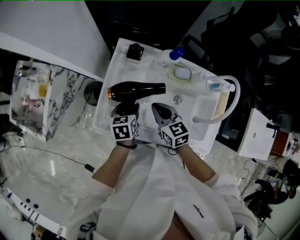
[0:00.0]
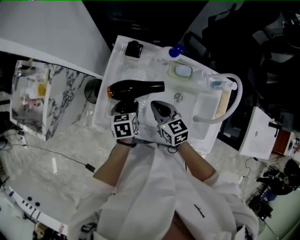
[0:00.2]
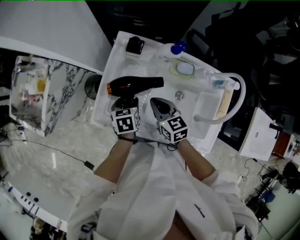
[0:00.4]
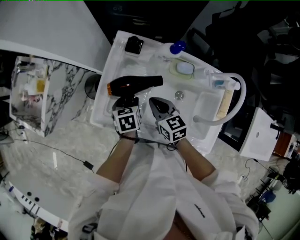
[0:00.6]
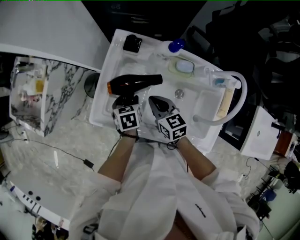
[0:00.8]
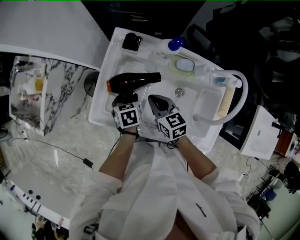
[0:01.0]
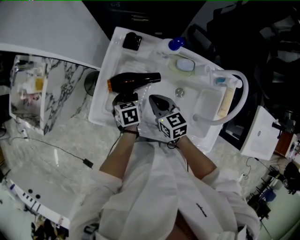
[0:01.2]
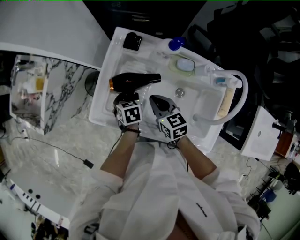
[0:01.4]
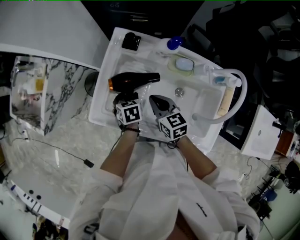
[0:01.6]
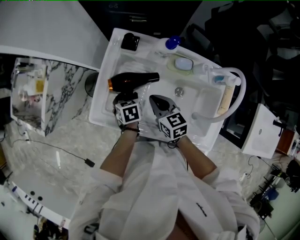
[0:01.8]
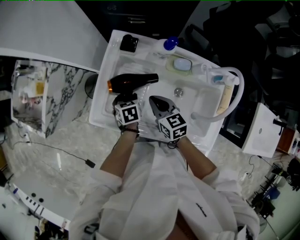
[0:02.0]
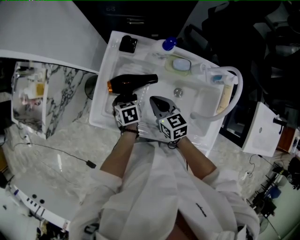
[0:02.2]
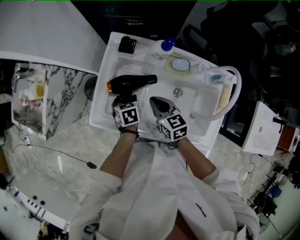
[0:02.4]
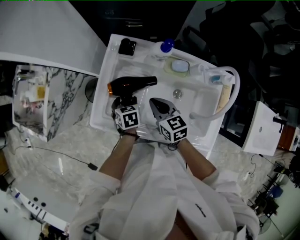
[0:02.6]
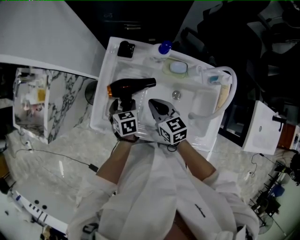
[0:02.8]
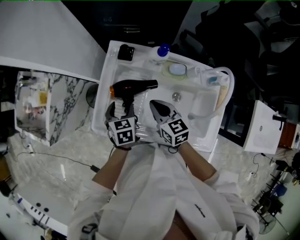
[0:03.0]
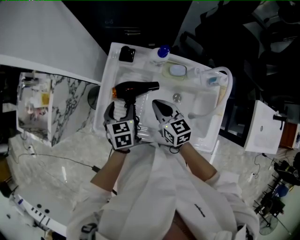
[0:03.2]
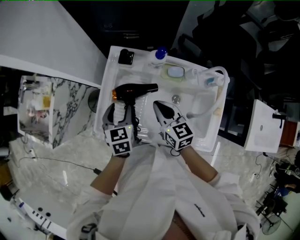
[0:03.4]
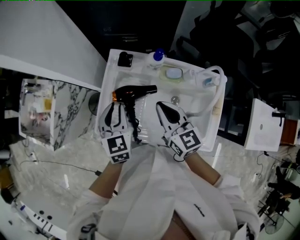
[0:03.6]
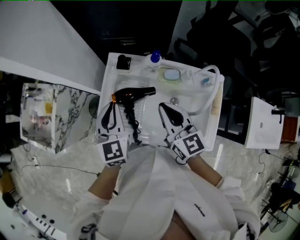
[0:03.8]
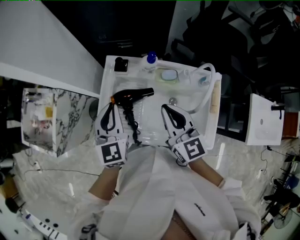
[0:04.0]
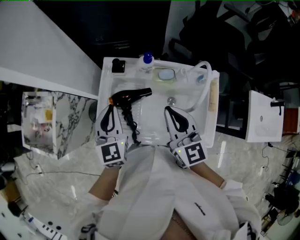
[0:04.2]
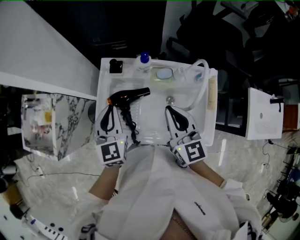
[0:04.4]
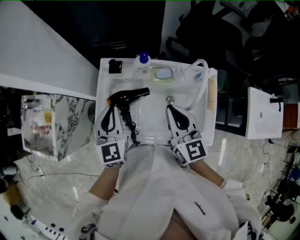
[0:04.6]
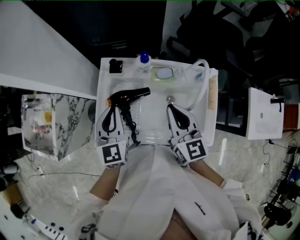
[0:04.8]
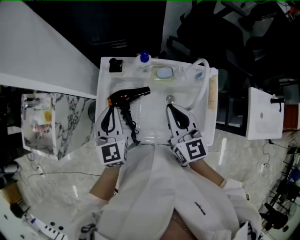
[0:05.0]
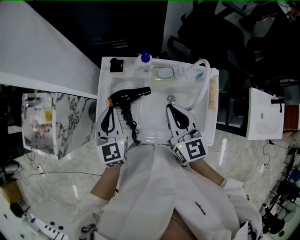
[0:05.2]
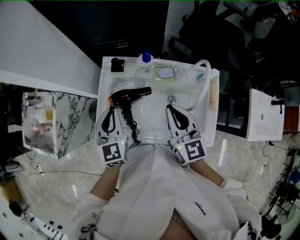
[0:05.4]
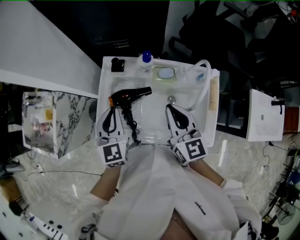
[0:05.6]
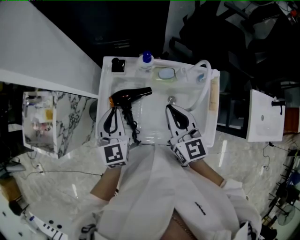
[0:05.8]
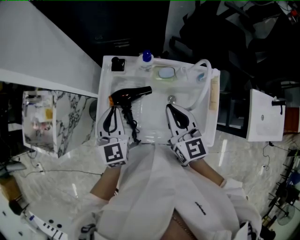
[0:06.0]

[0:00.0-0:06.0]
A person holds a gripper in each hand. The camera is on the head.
0:00.0 to 0:01.6: The left gripper shifts roughly 5 cm downward.
0:01.6 to 0:03.0: The right gripper ends up roughly 5 cm from where it was. The left gripper is displaced upward by roughly 10 cm.
0:03.0 to 0:04.4: Both grippers move upward, about 20 cm. The left gripper points its fingers approximately 30 degrees further upward, and closes up; the right gripper turns by roughly 30 degrees.
0:04.4 to 0:06.0: The grippers move only a little.

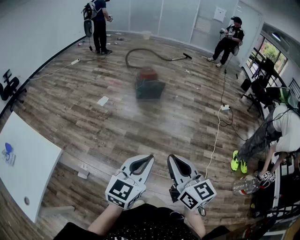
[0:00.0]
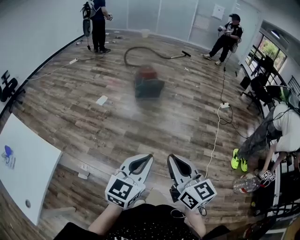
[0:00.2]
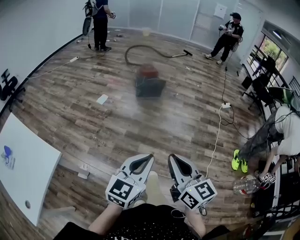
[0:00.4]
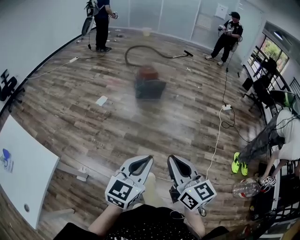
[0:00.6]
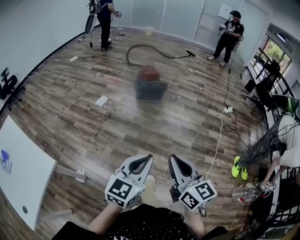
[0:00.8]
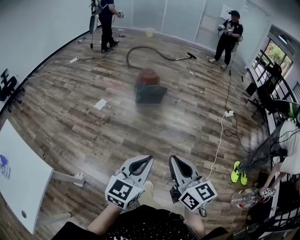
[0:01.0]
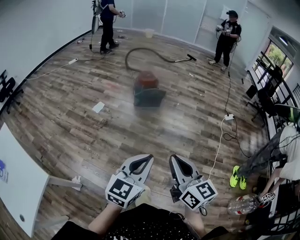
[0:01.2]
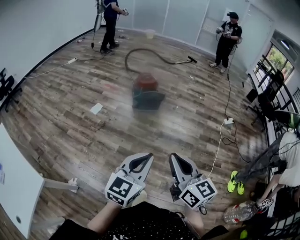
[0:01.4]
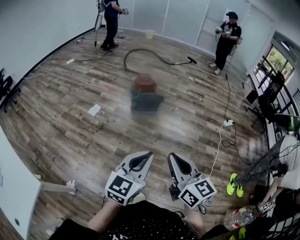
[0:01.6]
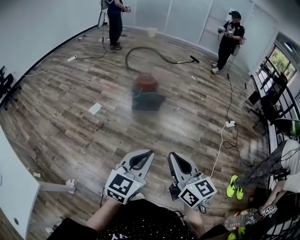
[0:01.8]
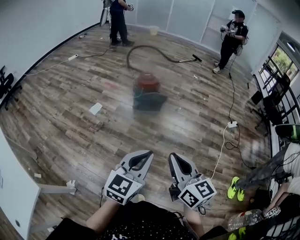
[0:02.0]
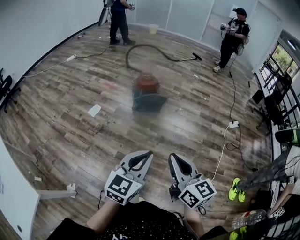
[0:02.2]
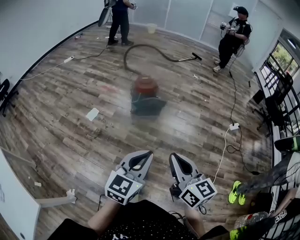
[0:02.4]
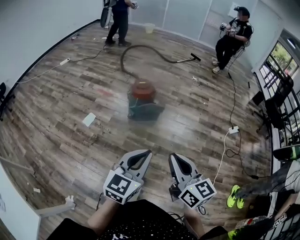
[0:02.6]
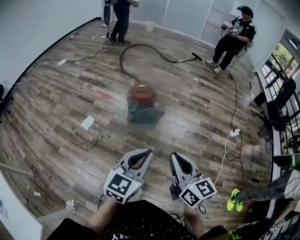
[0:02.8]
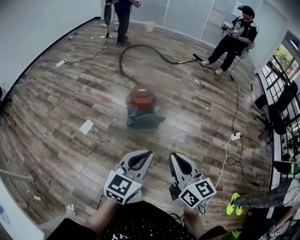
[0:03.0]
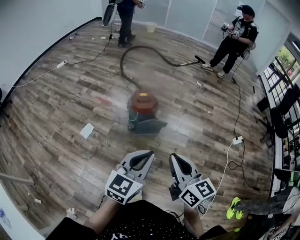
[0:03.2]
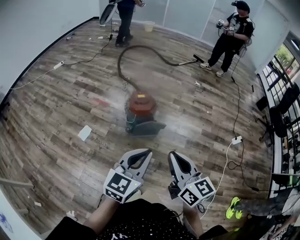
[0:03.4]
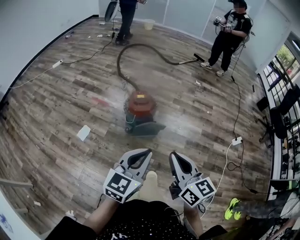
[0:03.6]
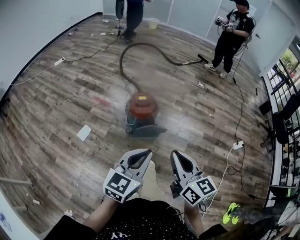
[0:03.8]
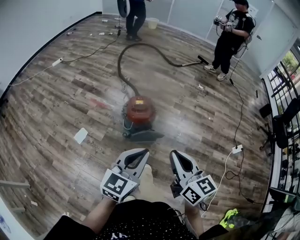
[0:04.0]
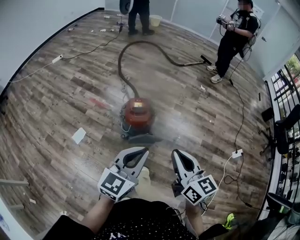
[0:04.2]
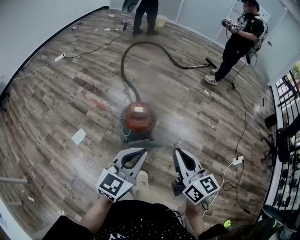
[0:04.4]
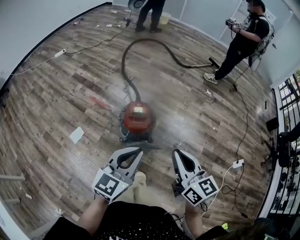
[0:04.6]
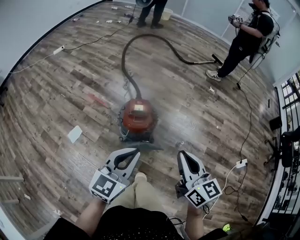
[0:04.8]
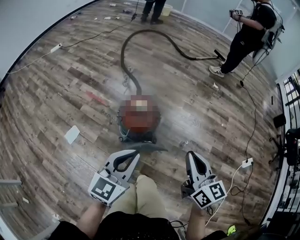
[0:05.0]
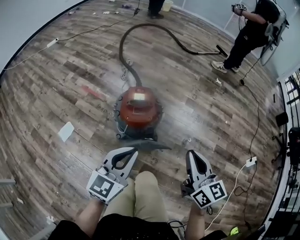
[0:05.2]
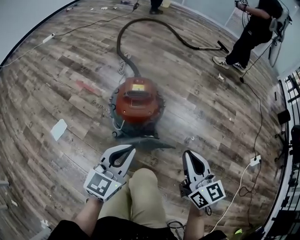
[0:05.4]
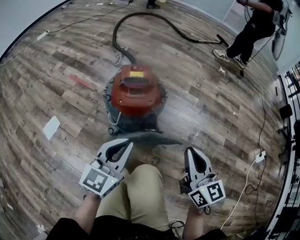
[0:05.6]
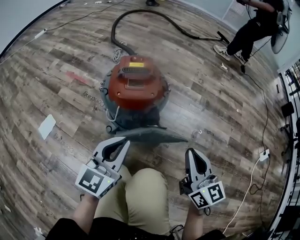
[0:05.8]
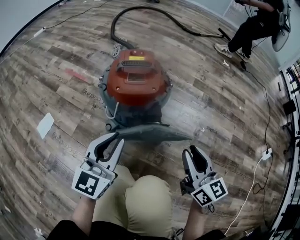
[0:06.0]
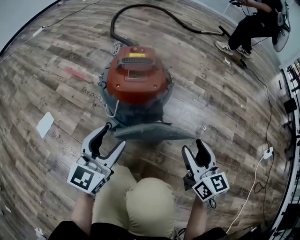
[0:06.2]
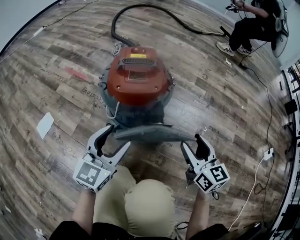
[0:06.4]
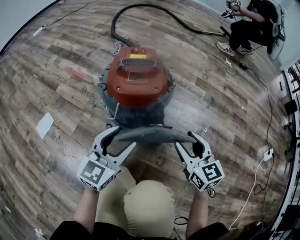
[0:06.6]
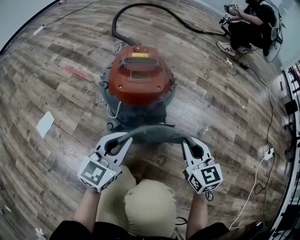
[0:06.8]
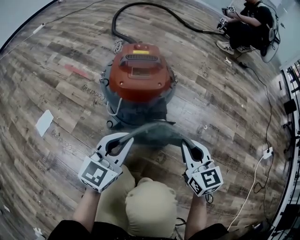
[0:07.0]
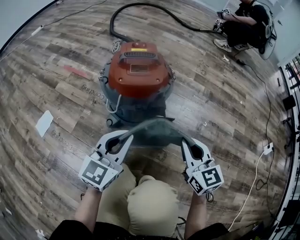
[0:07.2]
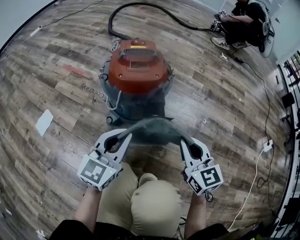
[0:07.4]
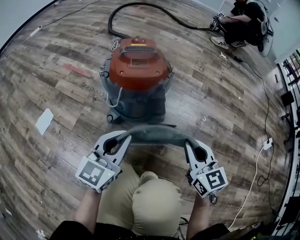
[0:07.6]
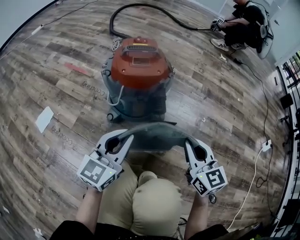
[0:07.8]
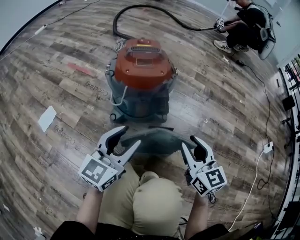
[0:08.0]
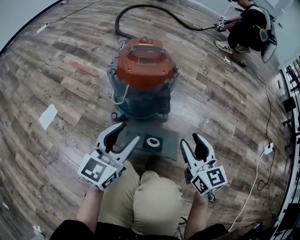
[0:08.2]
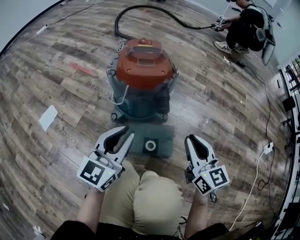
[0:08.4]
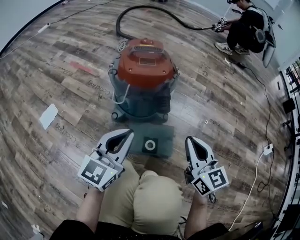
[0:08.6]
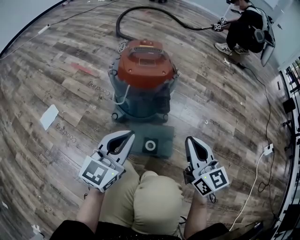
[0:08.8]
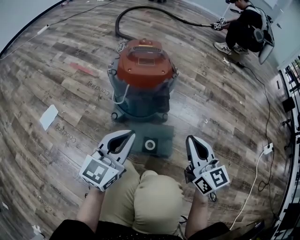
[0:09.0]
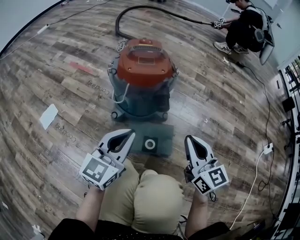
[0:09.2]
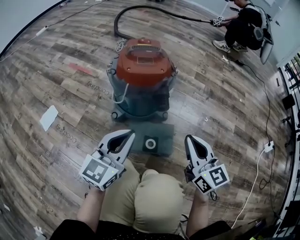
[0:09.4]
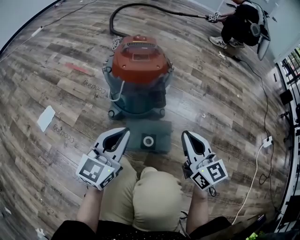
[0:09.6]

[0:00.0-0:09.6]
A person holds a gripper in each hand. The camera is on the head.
0:00.0 to 0:01.6: Both grippers move forward, about 30 cm.
0:01.6 to 0:03.2: The two grippers travel together, forward, about 50 cm.
0:03.2 to 0:04.8: The two grippers go roughly 35 cm forward.
0:04.8 to 0:06.4: Both grippers move downward, approximately 50 cm. The left gripper opens. The right gripper opens its fingers.
0:06.4 to 0:08.0: The grippers both shift backward by about 5 cm. The left gripper closes, then opens again, while the right gripper closes.
0:08.0 to 0:09.6: The left gripper closes up. Meanwhile the right gripper closes its fingers.

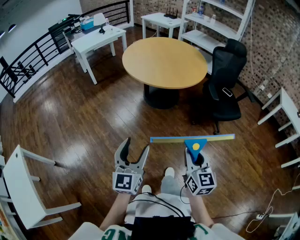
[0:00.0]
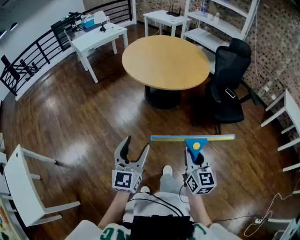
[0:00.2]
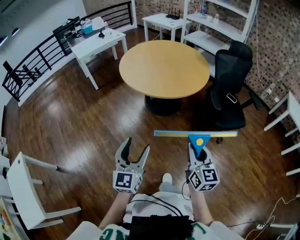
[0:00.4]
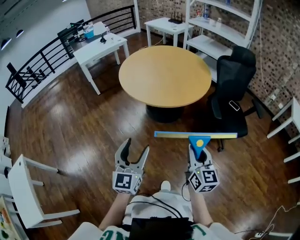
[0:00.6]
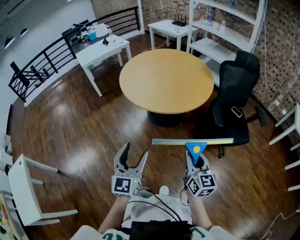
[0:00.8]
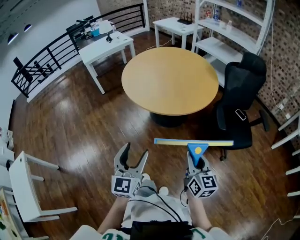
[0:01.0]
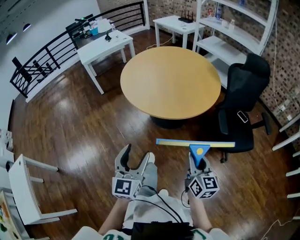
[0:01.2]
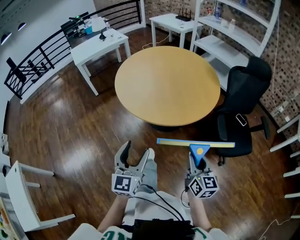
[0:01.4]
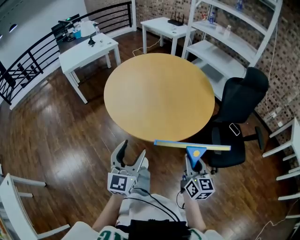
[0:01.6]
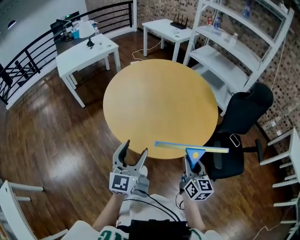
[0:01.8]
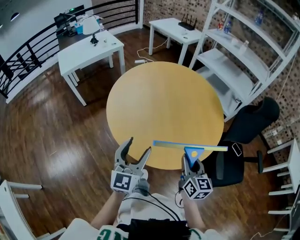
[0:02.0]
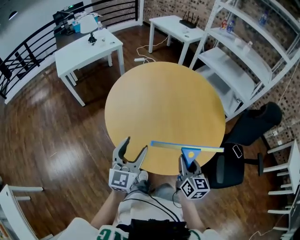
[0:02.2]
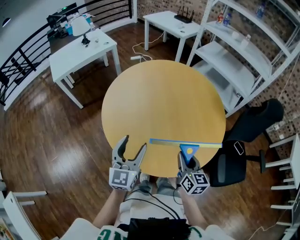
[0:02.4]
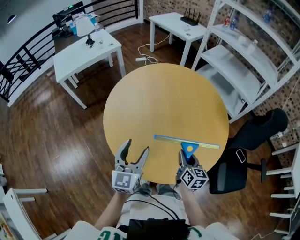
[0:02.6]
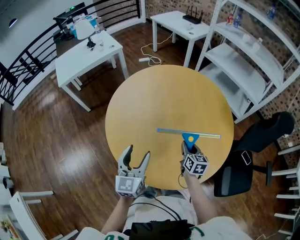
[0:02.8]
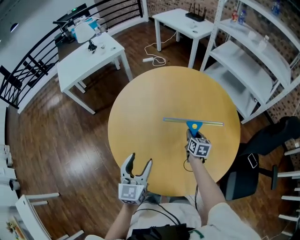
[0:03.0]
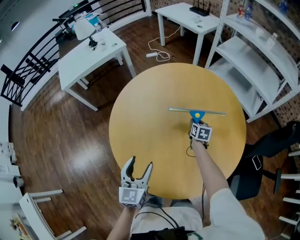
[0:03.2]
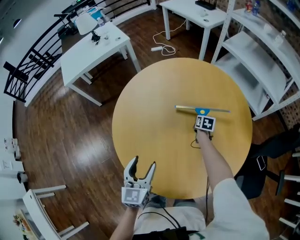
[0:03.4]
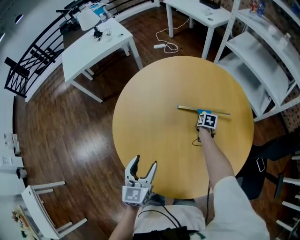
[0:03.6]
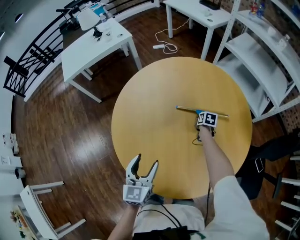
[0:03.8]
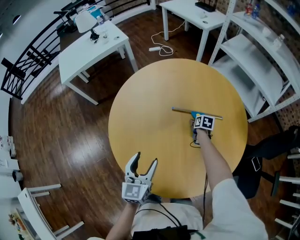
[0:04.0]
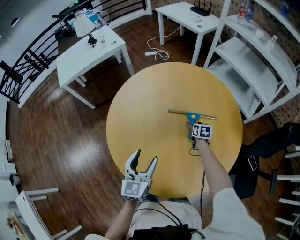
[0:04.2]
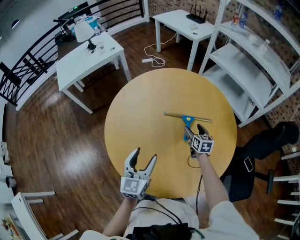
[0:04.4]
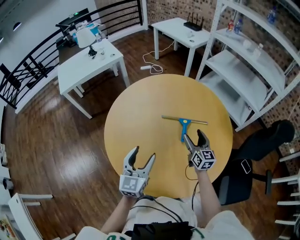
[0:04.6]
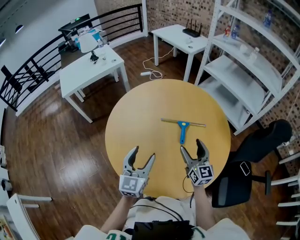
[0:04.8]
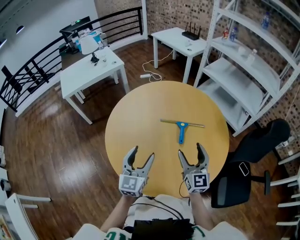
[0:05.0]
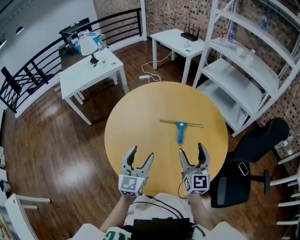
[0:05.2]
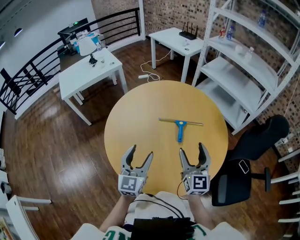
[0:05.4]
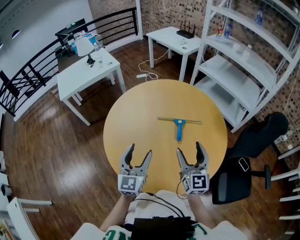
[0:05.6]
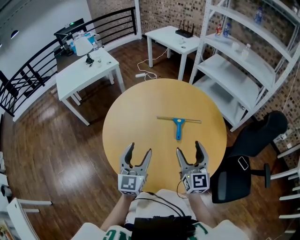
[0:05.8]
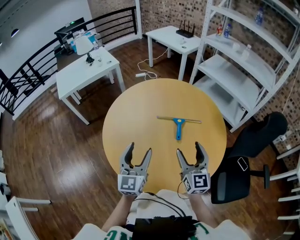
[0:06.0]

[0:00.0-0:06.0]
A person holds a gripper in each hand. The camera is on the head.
0:00.0 to 0:01.6: The pair of grippers is taken forward, about 50 cm.
0:01.6 to 0:03.0: The right gripper moves forward, roughly 60 cm, and turns by some 20 degrees. Meanwhile the left gripper goes about 35 cm forward.
0:03.0 to 0:04.4: The right gripper reaches approximately 15 cm downward, then returns, and opens its fingers. The left gripper changes place by roughly 5 cm.
0:04.4 to 0:06.0: The right gripper heads upward and backward, covering some 30 cm, and tilts its fingers some 30 degrees upward. The left gripper goes about 10 cm upward.

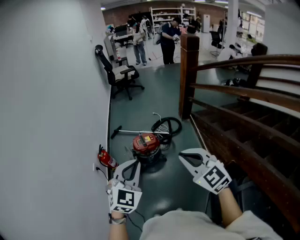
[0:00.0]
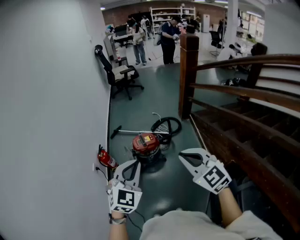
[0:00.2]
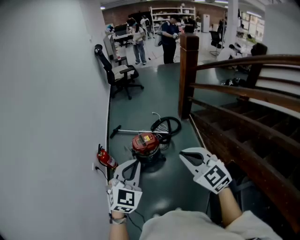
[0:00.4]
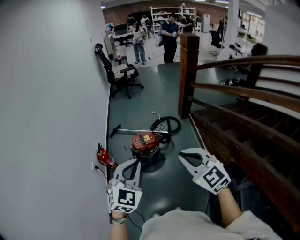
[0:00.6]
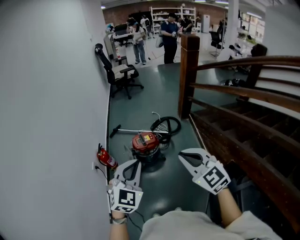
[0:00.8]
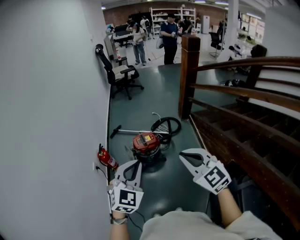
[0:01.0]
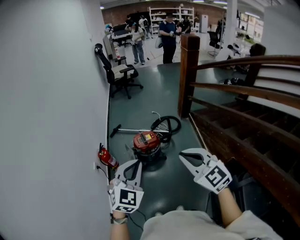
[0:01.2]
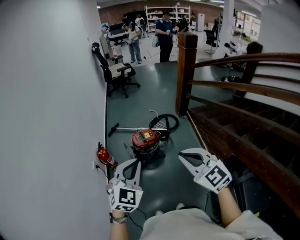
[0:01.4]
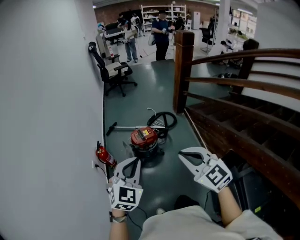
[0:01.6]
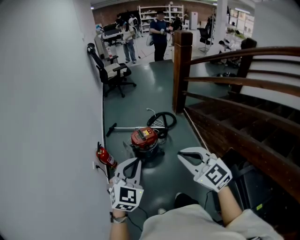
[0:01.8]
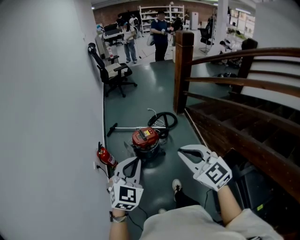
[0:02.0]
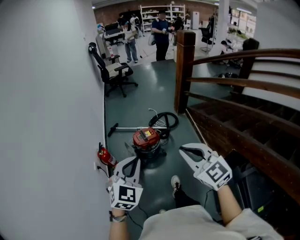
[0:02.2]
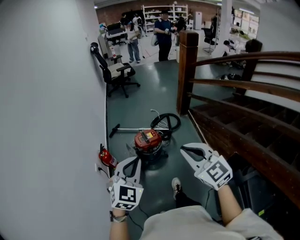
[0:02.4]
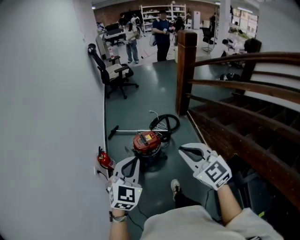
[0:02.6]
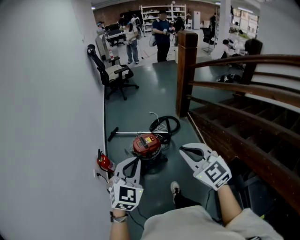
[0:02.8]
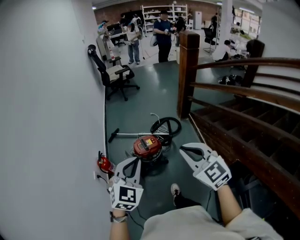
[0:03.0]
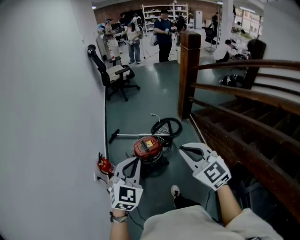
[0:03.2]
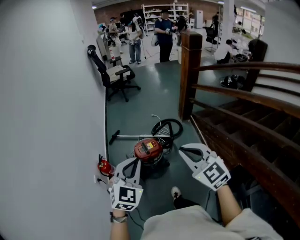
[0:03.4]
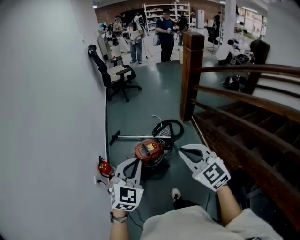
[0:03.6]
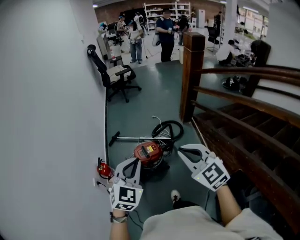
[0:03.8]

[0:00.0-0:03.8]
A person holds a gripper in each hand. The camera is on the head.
0:00.0 to 0:01.2: There are only small adjustments of the grippers.
0:01.2 to 0:02.6: The right gripper ends up approximately 5 cm from where it was. Meanwhile the left gripper is displaced forward by about 5 cm.
0:02.6 to 0:03.8: Both grippers travel together forward, approximately 15 cm.
